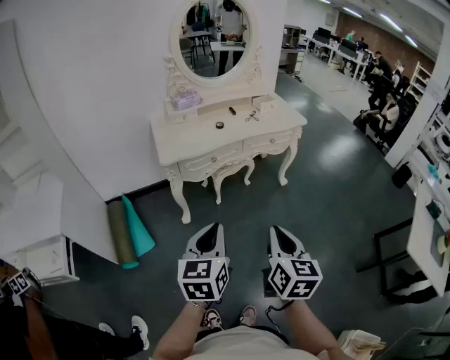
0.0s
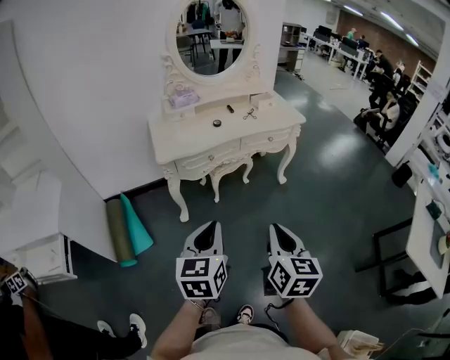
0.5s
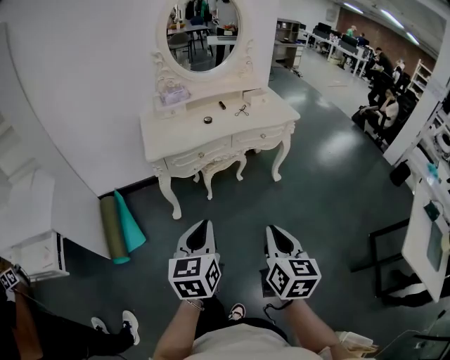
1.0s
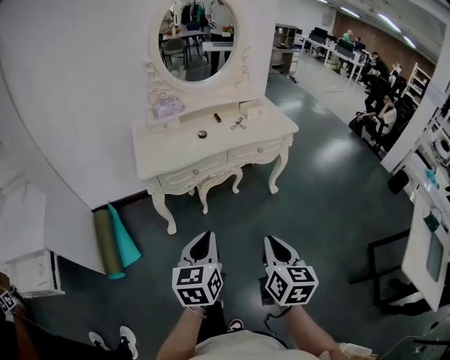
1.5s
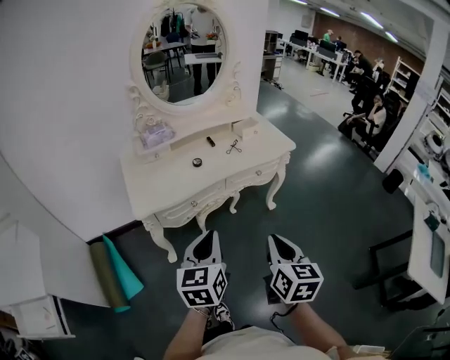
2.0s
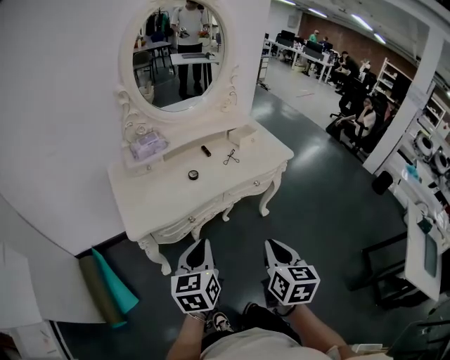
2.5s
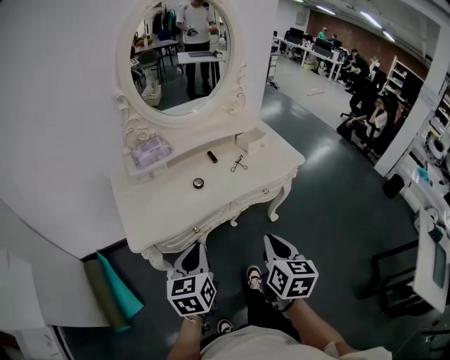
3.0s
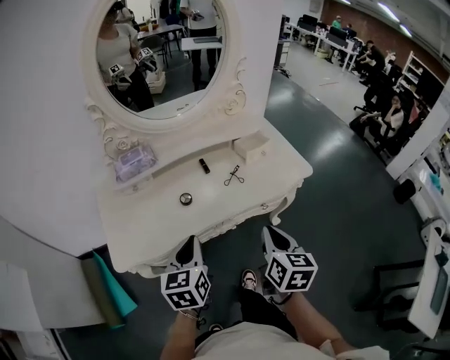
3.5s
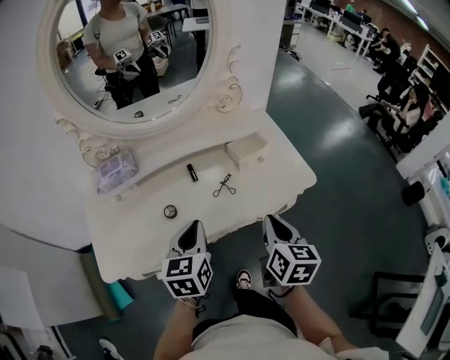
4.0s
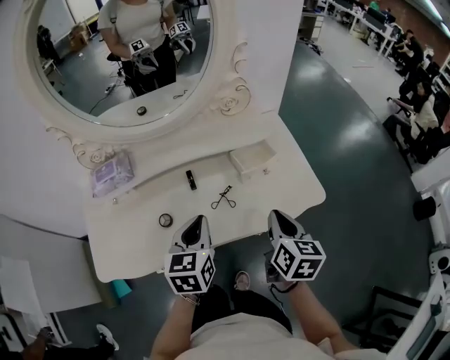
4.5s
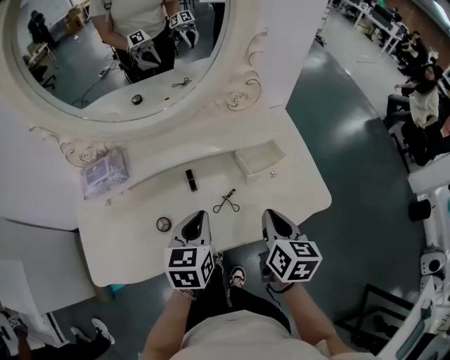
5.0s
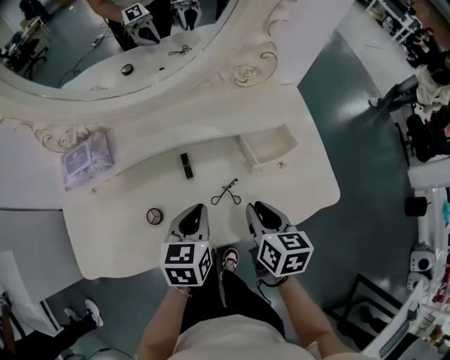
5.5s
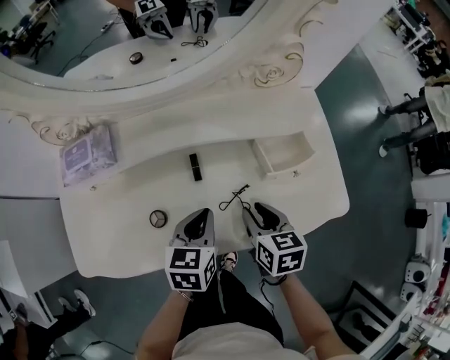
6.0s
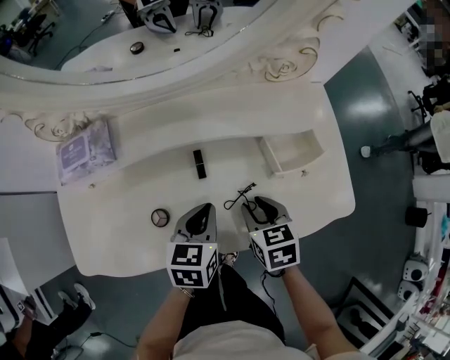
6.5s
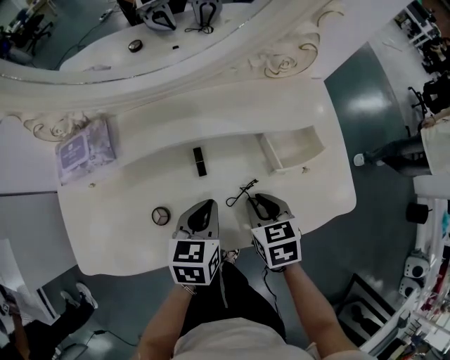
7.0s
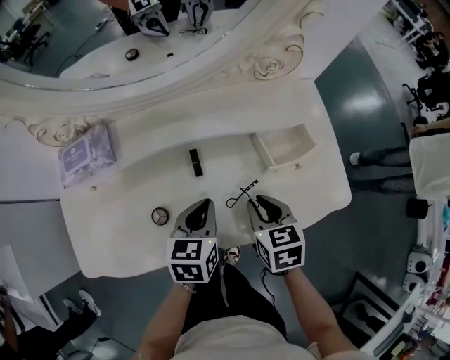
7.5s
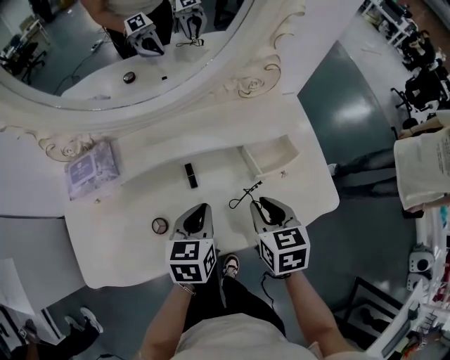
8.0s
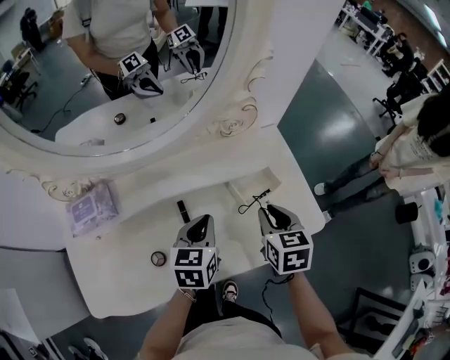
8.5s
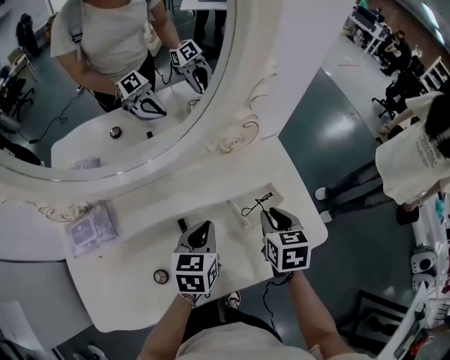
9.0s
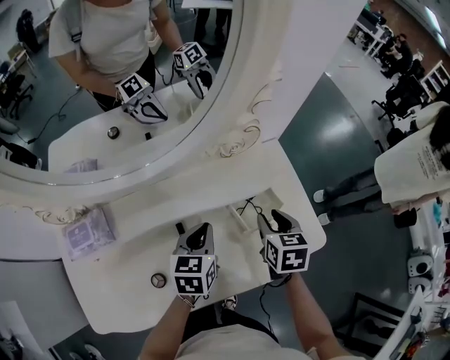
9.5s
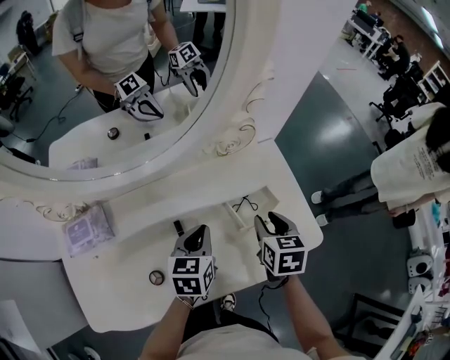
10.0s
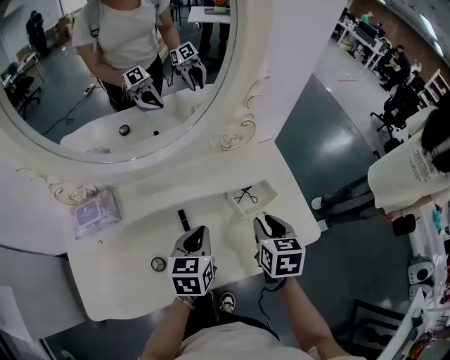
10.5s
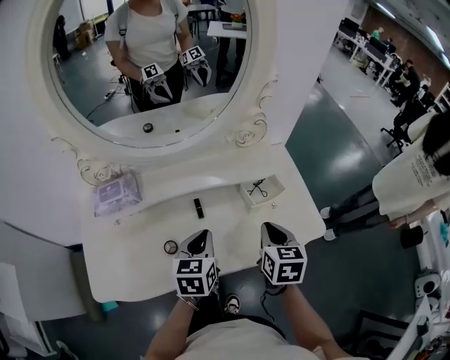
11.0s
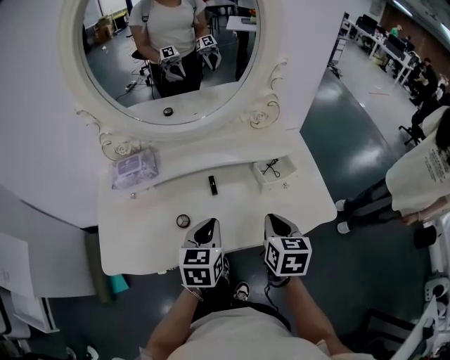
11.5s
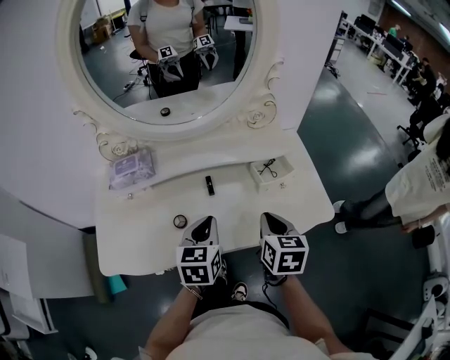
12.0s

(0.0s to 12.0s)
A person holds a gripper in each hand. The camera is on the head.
0.0s - 2.0s: Both grippers move forward, approximately 20 cm.
2.0s - 4.0s: The grippers both shift forward by about 40 cm.
4.0s - 6.0s: The grippers both shift downward and forward by about 20 cm. The right gripper swivels some 30 degrees, and opens its fingers.
6.0s - 8.0s: The right gripper travels upward by roughly 5 cm.
8.0s - 10.0s: The right gripper goes approximately 10 cm forward and to the right. Meanwhile the left gripper travels forward by some 10 cm.
10.0s - 12.0s: The two grippers go some 15 cm backward. The right gripper closes.

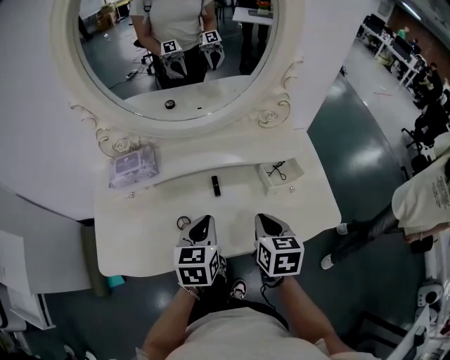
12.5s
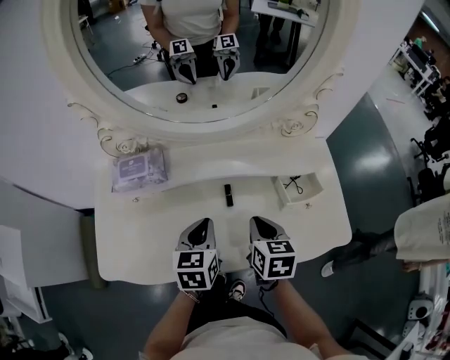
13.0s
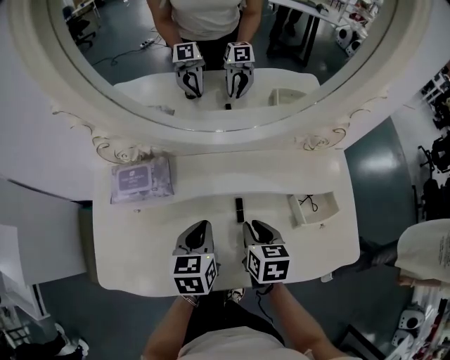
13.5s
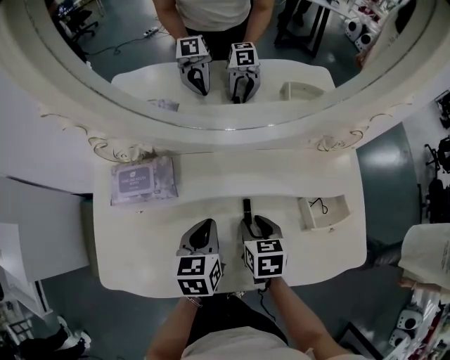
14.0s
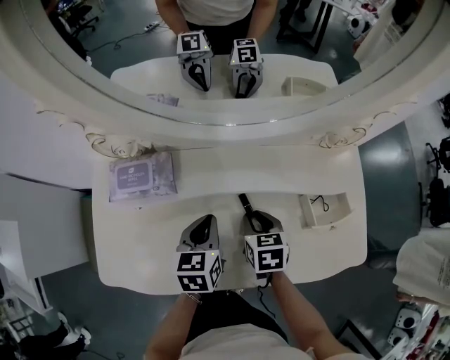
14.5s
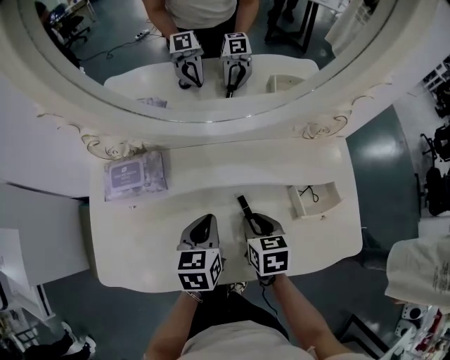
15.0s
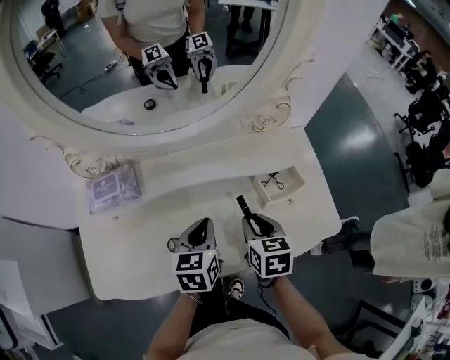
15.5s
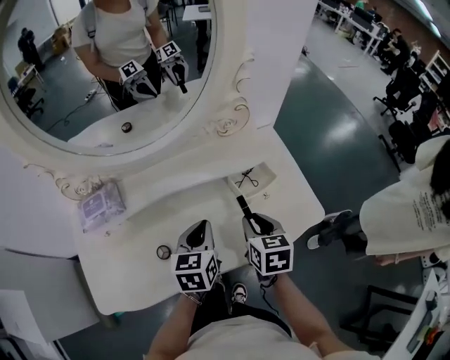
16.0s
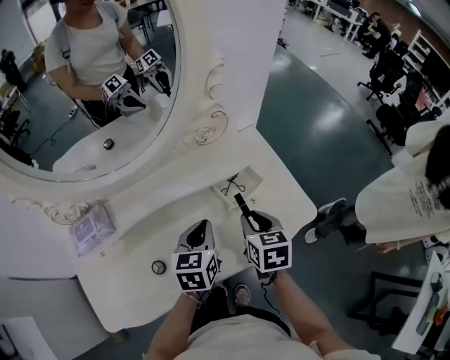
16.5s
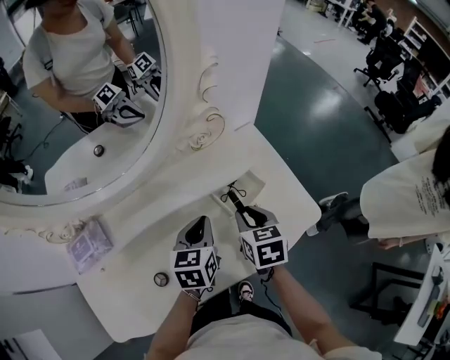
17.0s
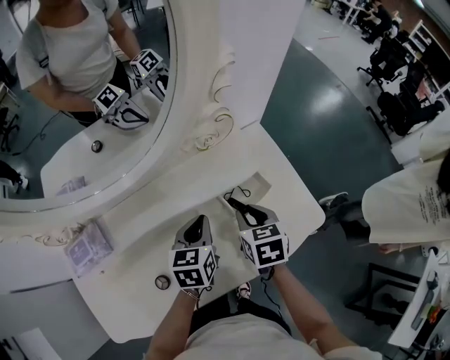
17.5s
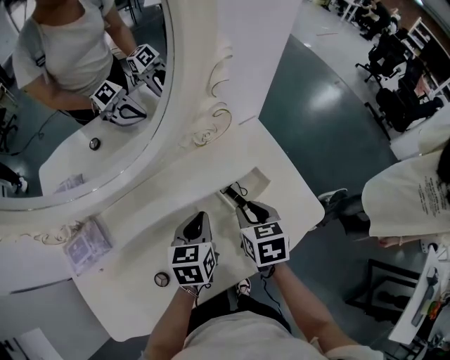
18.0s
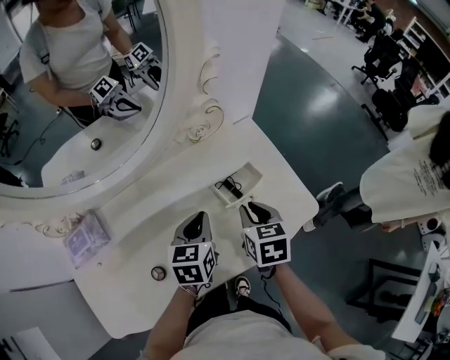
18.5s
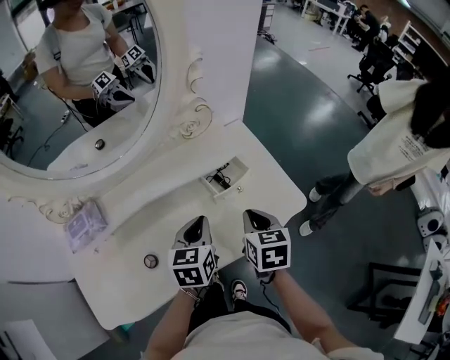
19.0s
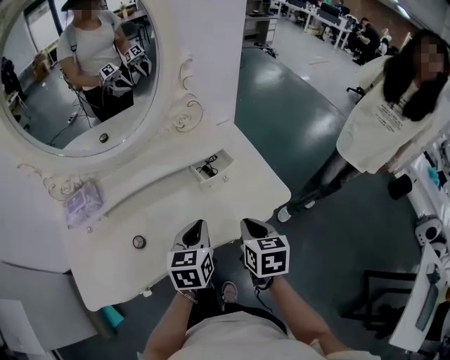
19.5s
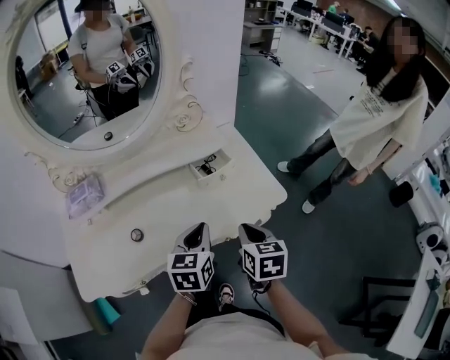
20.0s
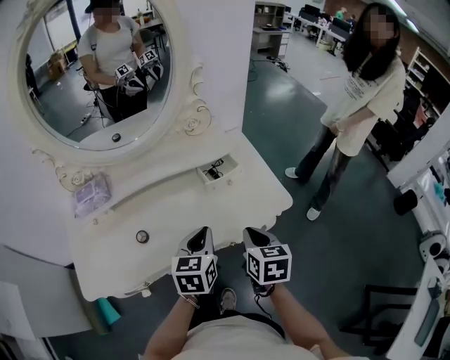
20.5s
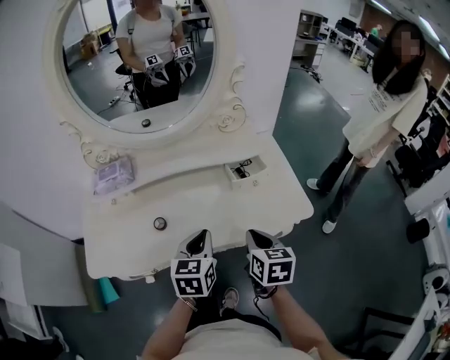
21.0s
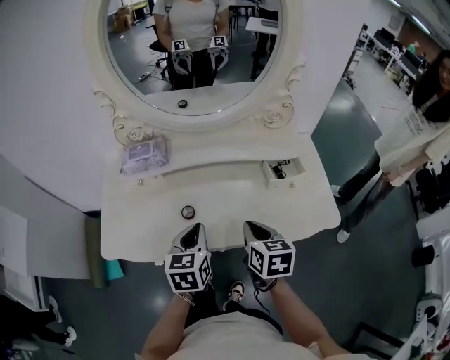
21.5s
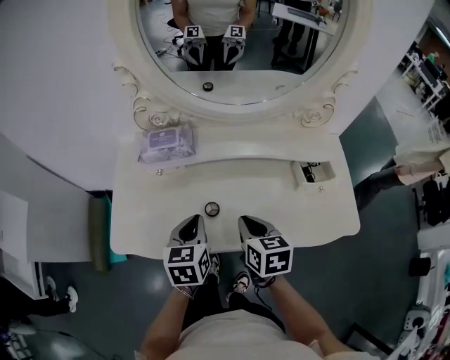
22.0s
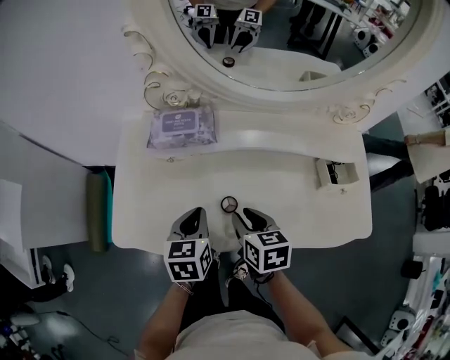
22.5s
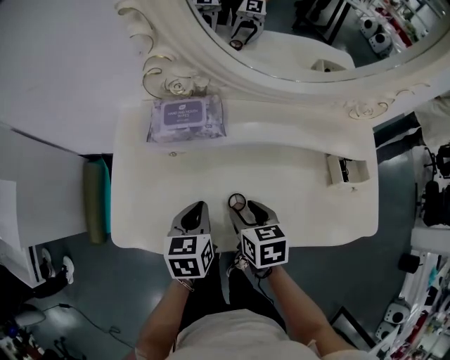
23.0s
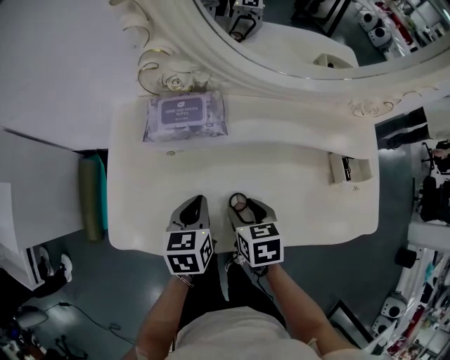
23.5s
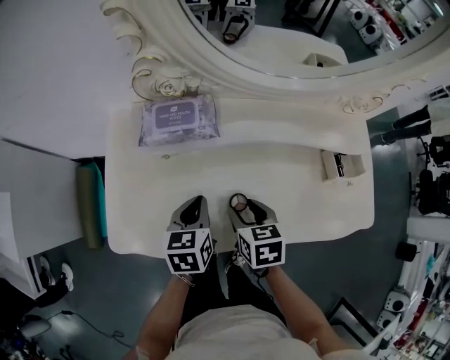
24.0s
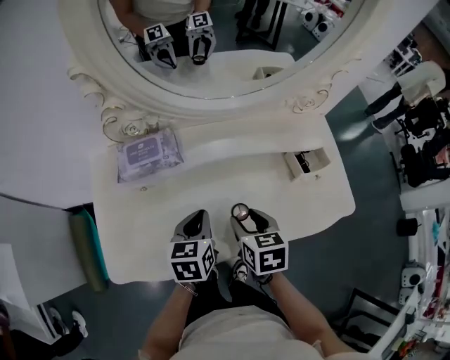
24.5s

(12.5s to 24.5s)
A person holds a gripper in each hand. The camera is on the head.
12.5s - 14.5s: The grippers both shift forward, downward and to the left by some 20 cm. The right gripper opens its fingers.
14.5s - 16.5s: The right gripper moves roughly 25 cm, and swivels approximately 30 degrees. Meanwhile the left gripper moves roughly 20 cm, and changes its angle by approximately 30 degrees.
18.5s - 20.5s: The grippers both shift backward and to the right by approximately 20 cm.
20.5s - 22.5s: The left gripper shifts by some 35 cm, and turns by about 30 degrees. The right gripper shifts by about 35 cm, turns by about 30 degrees, and opens.
22.5s - 24.5s: The grippers both shift to the right by approximately 5 cm.

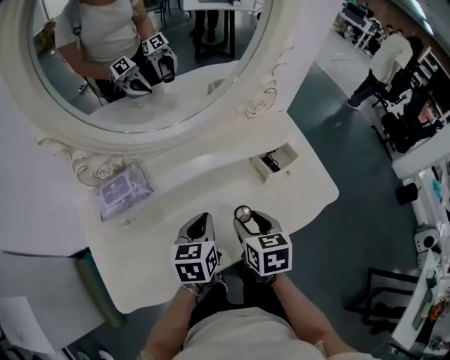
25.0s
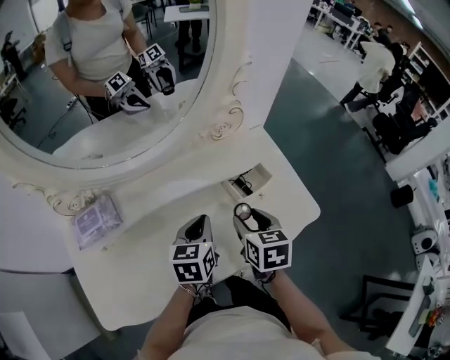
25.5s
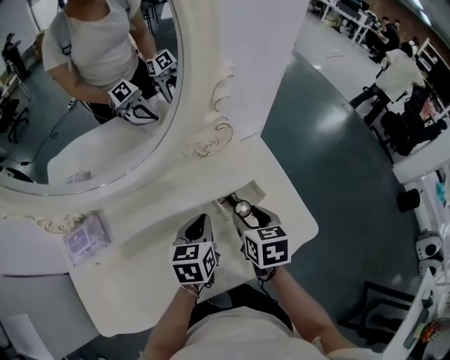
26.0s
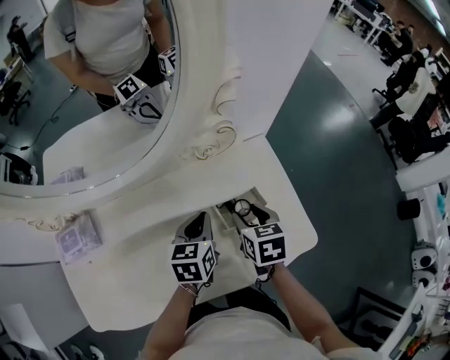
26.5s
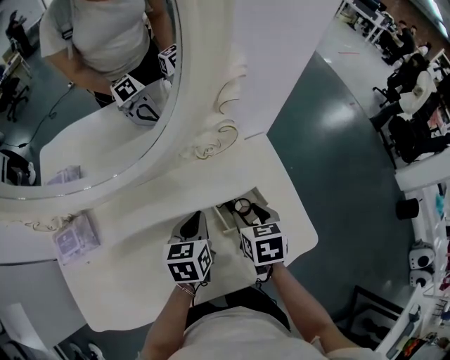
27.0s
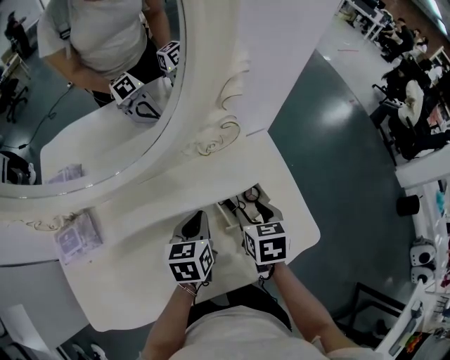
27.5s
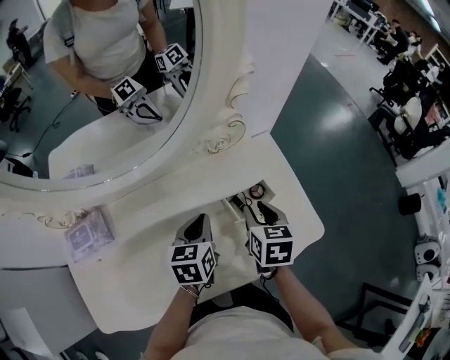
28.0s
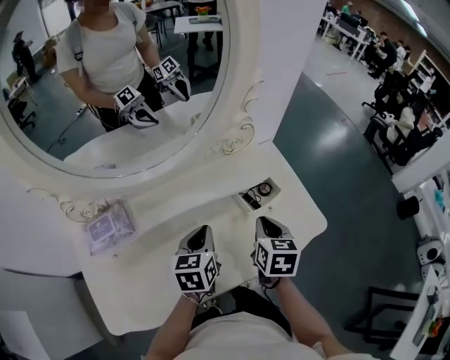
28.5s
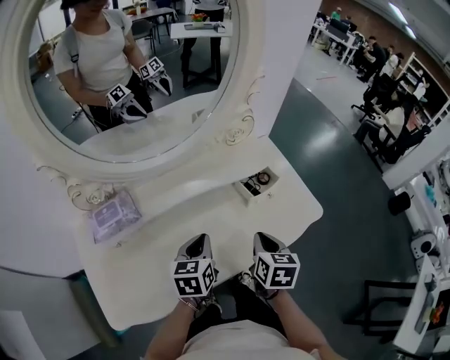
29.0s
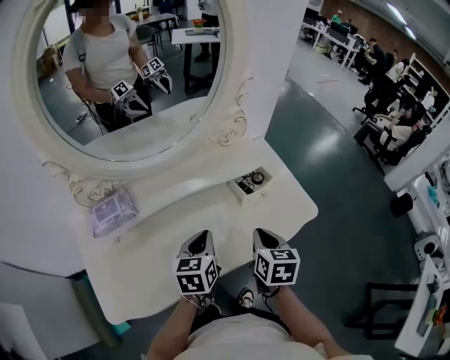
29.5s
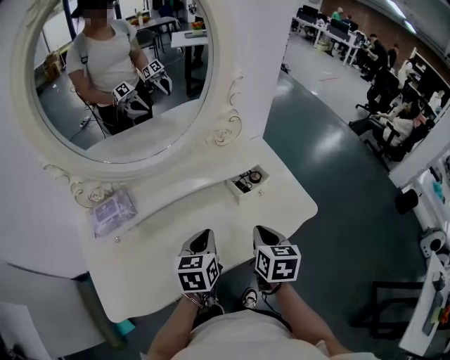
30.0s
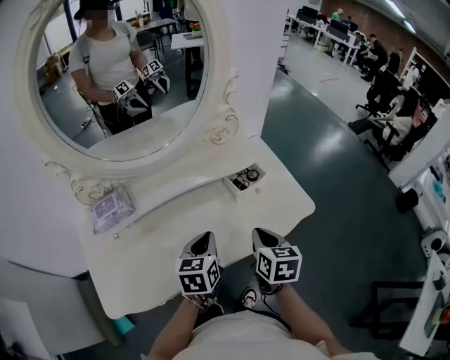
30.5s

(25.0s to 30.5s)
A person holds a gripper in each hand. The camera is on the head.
25.0s - 27.0s: Both grippers move forward and to the right, some 25 cm.
27.0s - 28.5s: The left gripper heads backward and to the left, covering roughly 10 cm. The right gripper is displaced backward and upward by some 10 cm, and closes up.
28.5s - 30.5s: Both grippers travel together backward, some 10 cm.
